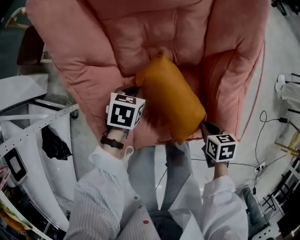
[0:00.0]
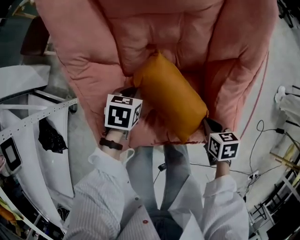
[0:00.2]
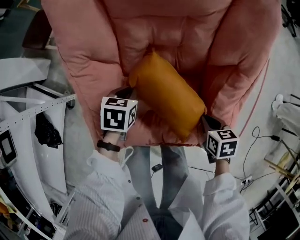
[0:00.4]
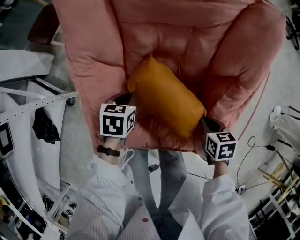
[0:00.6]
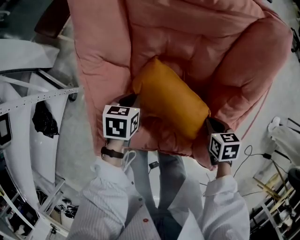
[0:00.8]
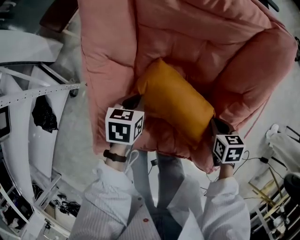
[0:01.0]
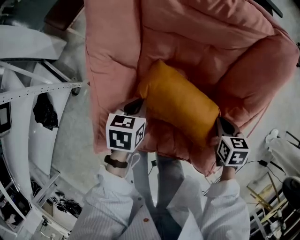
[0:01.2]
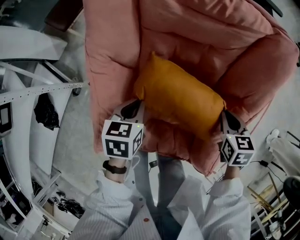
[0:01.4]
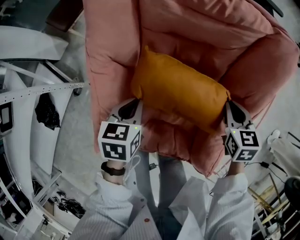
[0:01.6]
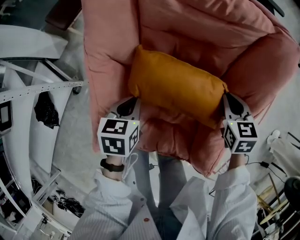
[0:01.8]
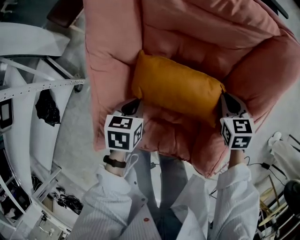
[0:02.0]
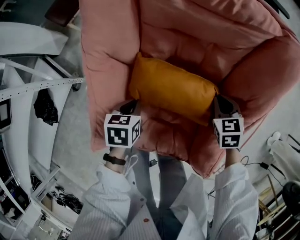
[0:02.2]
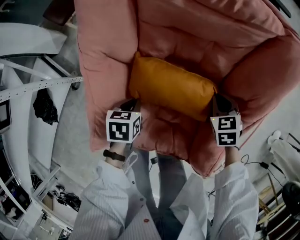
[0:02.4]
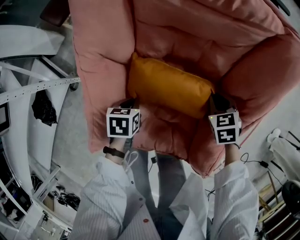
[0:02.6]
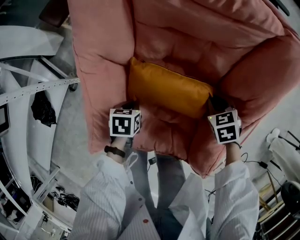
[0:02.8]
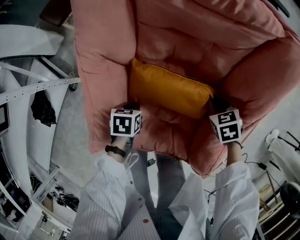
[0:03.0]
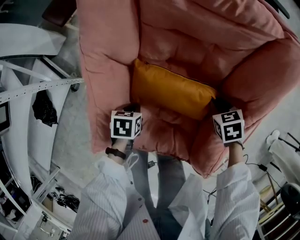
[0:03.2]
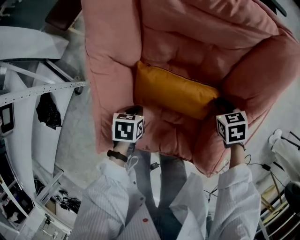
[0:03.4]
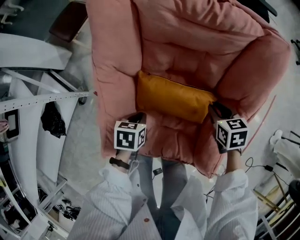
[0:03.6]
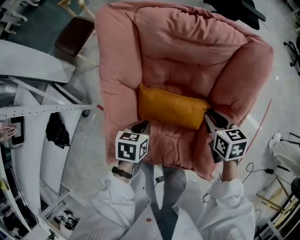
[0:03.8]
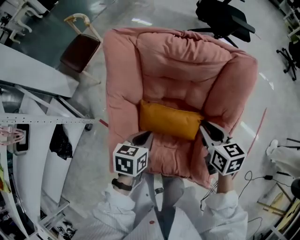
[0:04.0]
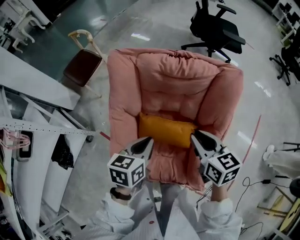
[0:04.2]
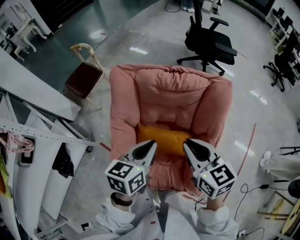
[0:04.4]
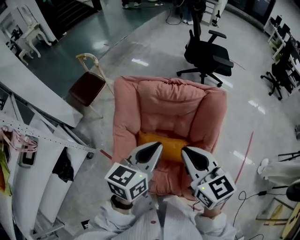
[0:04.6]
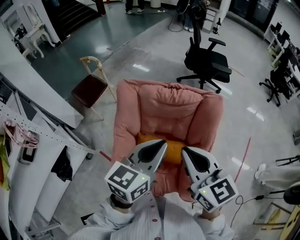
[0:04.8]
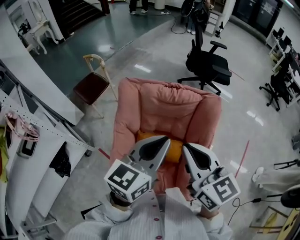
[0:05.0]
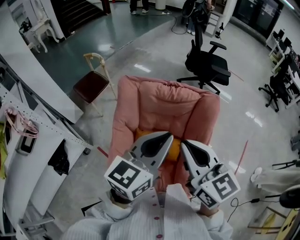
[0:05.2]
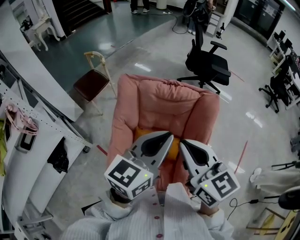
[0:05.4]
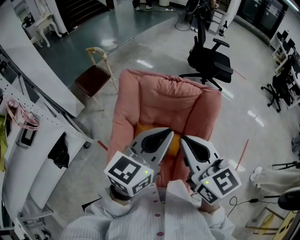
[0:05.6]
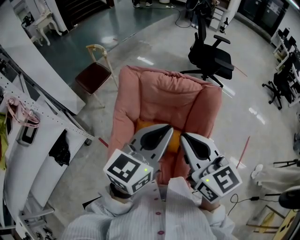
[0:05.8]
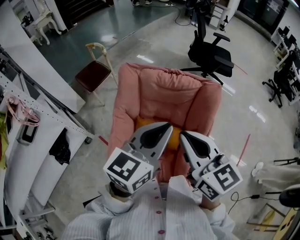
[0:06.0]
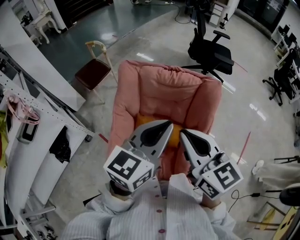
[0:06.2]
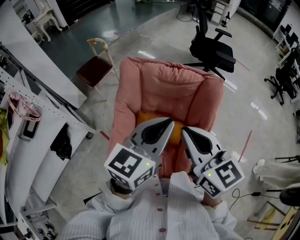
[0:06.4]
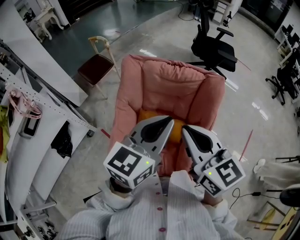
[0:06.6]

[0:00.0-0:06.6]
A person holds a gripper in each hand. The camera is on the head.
0:00.0 to 0:01.6: The left gripper moves upward, some 10 cm, and changes its angle by some 30 degrees. The right gripper shifts some 30 cm forward and upward, and rotates roughly 40 degrees.
0:01.6 to 0:03.2: Both grippers move downward, some 15 cm. The right gripper swivels about 20 degrees. Meanwhile the left gripper swivels roughly 20 degrees.
0:03.2 to 0:05.0: The two grippers go about 60 cm upward. The right gripper points its fingers some 60 degrees further upward, while the left gripper tips its fingers upward by approximately 60 degrees.
0:05.0 to 0:06.6: The grippers make only small movements.

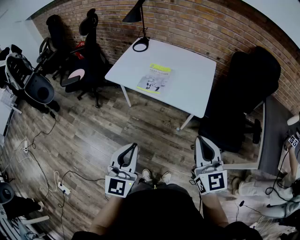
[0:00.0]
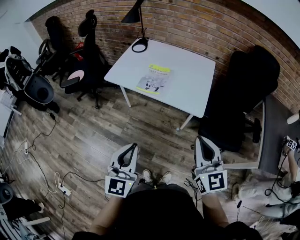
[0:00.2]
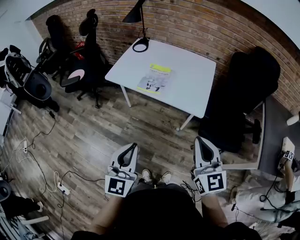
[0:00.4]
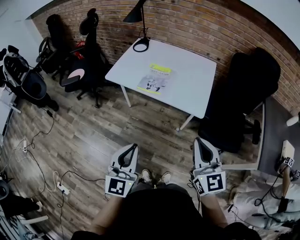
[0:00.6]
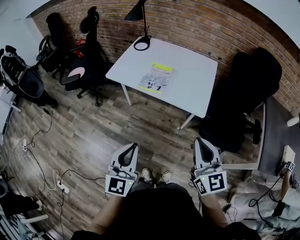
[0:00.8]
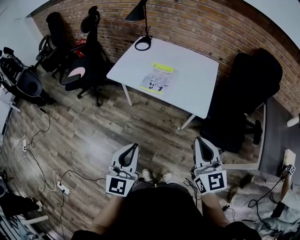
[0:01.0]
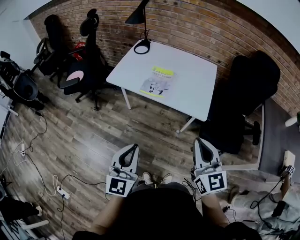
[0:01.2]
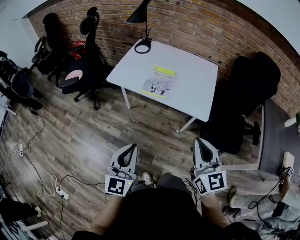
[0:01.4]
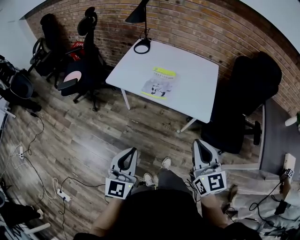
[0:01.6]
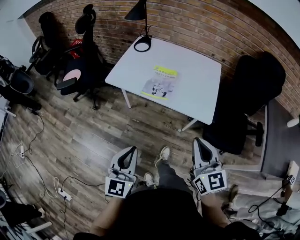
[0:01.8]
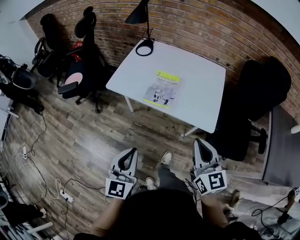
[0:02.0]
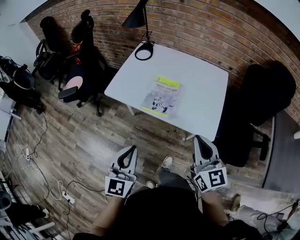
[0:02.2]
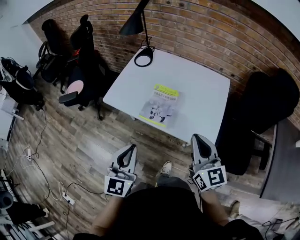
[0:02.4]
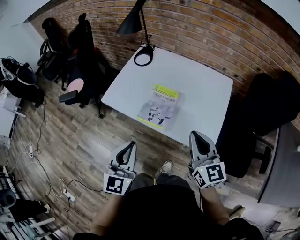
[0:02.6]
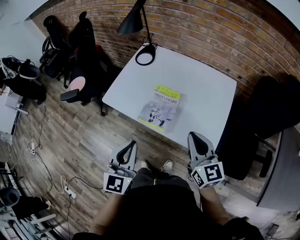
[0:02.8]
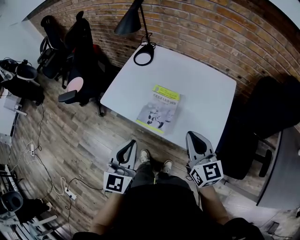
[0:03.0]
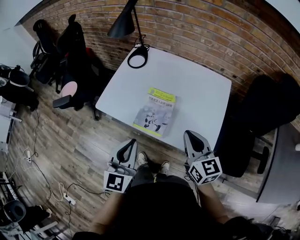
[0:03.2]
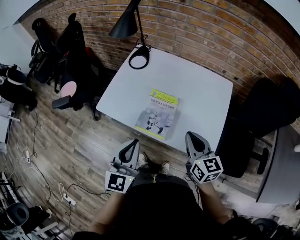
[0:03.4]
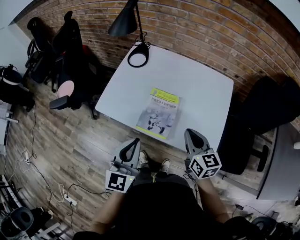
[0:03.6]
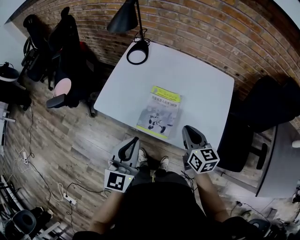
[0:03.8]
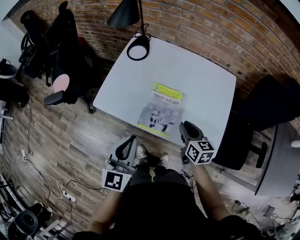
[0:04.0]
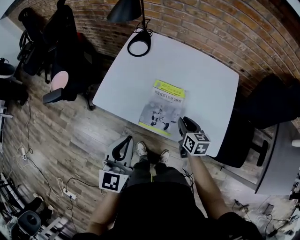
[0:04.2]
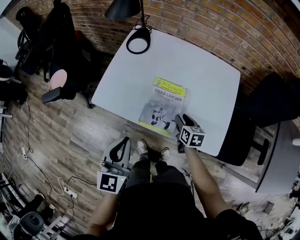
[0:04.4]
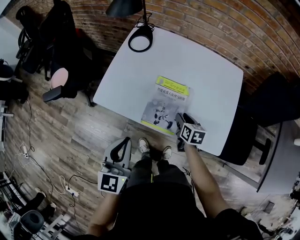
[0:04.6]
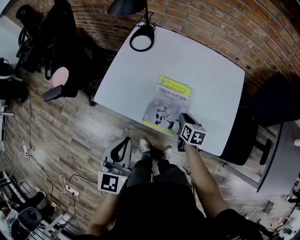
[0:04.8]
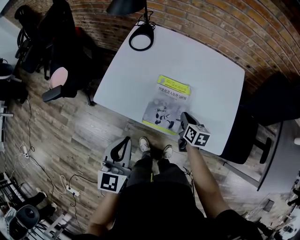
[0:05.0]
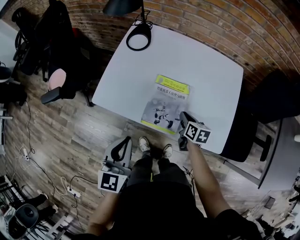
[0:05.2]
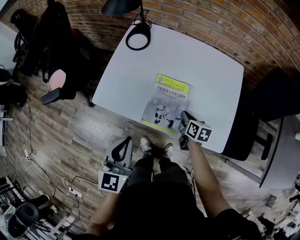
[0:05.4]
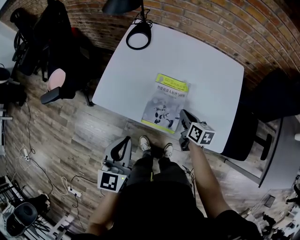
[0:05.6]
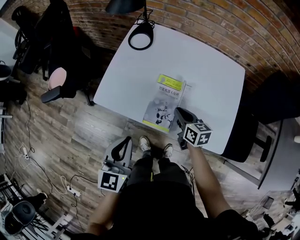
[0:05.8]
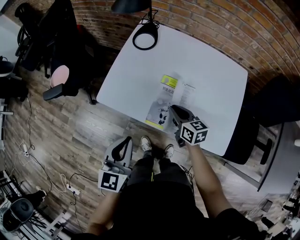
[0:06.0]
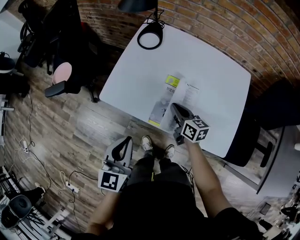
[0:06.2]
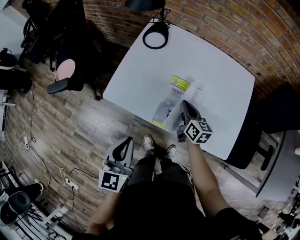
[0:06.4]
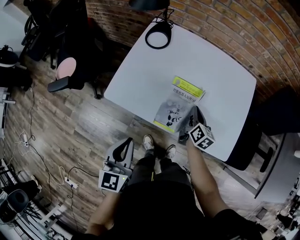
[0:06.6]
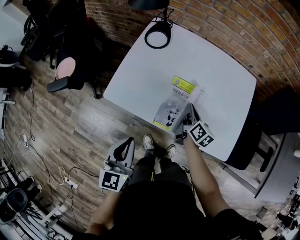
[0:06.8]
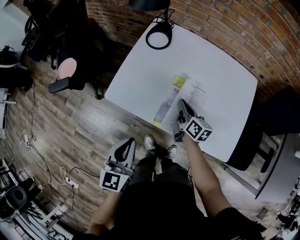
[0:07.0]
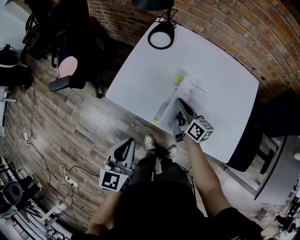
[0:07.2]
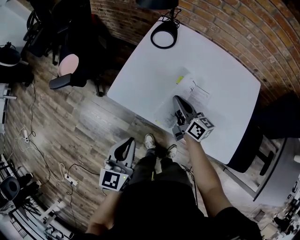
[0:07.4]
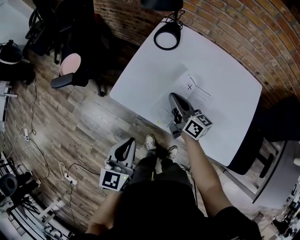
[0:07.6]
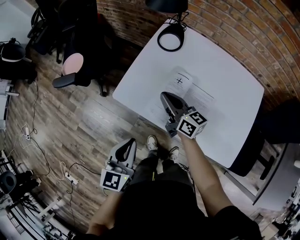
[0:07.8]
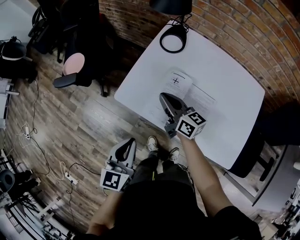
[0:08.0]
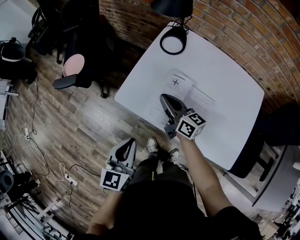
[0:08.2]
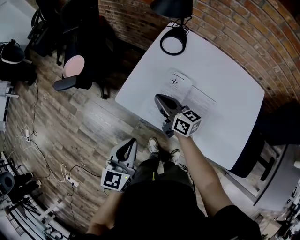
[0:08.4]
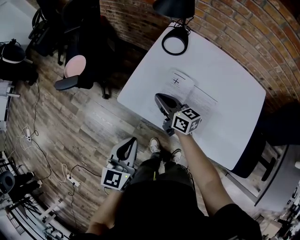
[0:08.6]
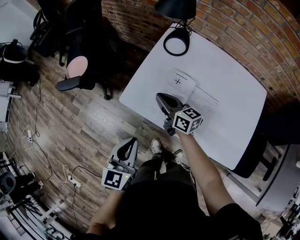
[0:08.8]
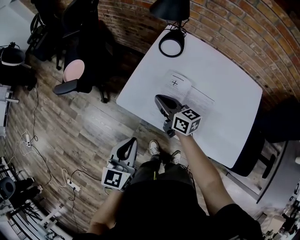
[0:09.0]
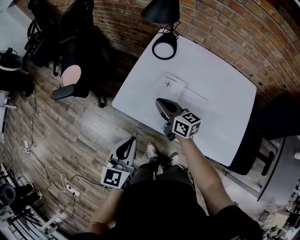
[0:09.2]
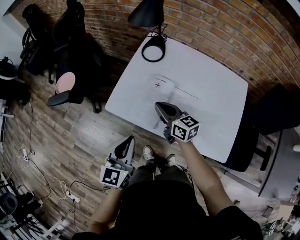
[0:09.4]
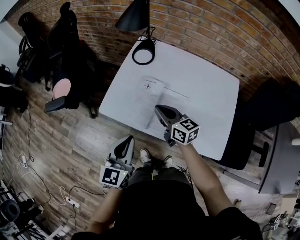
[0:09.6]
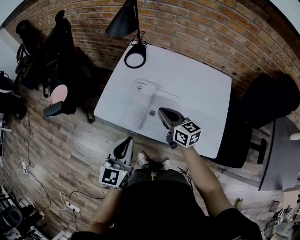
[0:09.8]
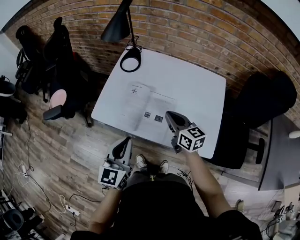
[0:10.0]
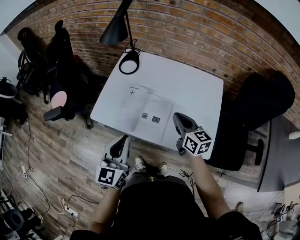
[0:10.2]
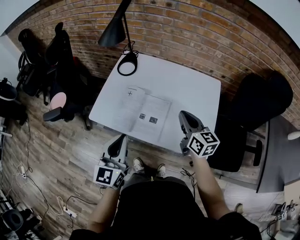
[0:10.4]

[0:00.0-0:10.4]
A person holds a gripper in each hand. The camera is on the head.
0:00.0 to 0:01.4: Both grippers travel together to the left, about 5 cm.
0:01.4 to 0:03.0: Both grippers travel together forward, approximately 30 cm.
0:03.0 to 0:04.4: The left gripper moves to the left and forward, about 10 cm, while the right gripper moves downward and forward, approximately 30 cm, tilts its fingers approximately 30 degrees downward, and opens.
0:04.4 to 0:06.0: The right gripper travels to the left by some 10 cm, turns by some 20 degrees, and closes up.
0:06.0 to 0:07.4: The right gripper moves to the left and forward, some 10 cm, and turns by approximately 20 degrees.
0:07.4 to 0:09.0: The right gripper travels to the left by roughly 10 cm.
0:09.0 to 0:10.4: The left gripper travels to the right and upward by some 15 cm, while the right gripper travels to the right, backward and upward by about 35 cm, and swivels approximately 30 degrees.

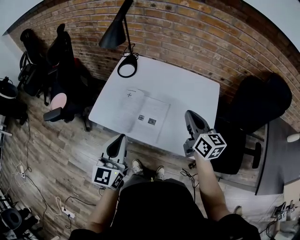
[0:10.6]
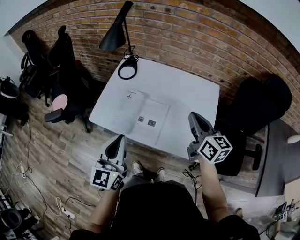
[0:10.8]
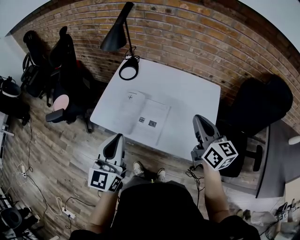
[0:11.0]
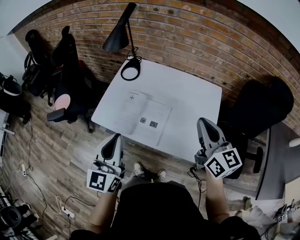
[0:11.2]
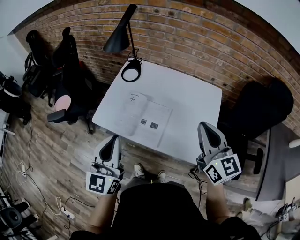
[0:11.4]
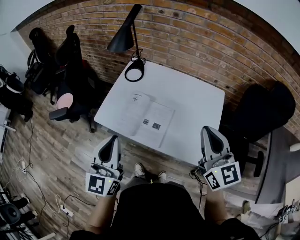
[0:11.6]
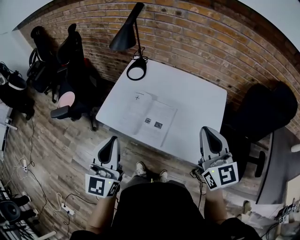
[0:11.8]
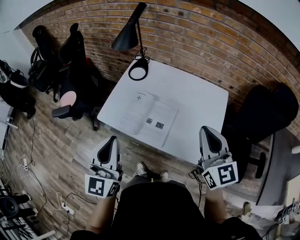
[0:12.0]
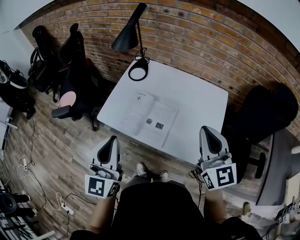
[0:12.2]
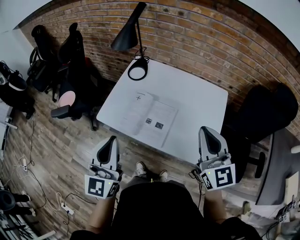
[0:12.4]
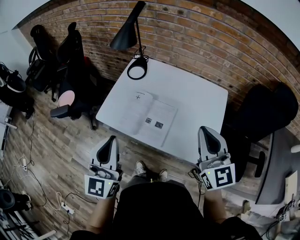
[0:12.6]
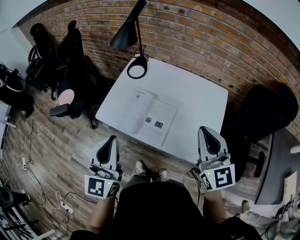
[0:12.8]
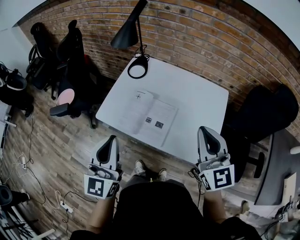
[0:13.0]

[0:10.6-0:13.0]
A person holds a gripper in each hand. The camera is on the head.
0:10.6 to 0:11.8: The right gripper is displaced upward and backward by about 15 cm, and changes its angle by roughly 30 degrees. The left gripper shifts some 10 cm upward.
0:11.8 to 0:13.0: The grippers make only small movements.

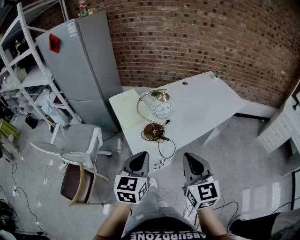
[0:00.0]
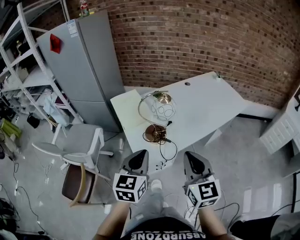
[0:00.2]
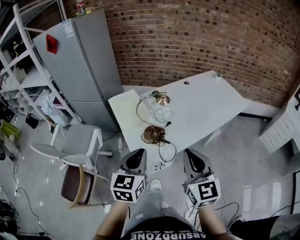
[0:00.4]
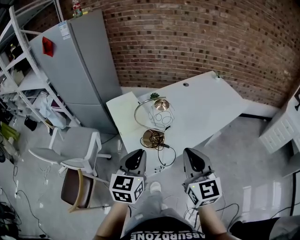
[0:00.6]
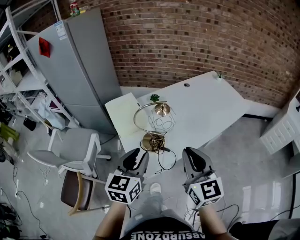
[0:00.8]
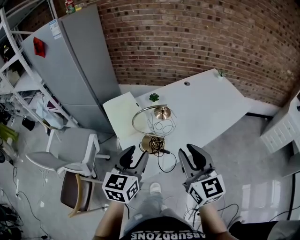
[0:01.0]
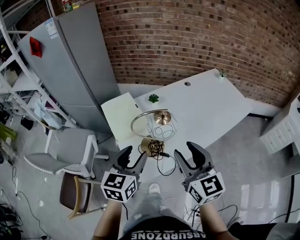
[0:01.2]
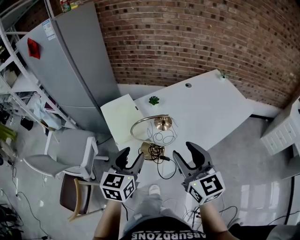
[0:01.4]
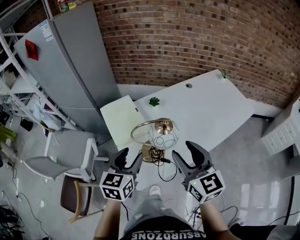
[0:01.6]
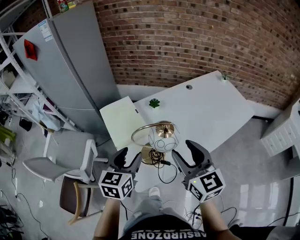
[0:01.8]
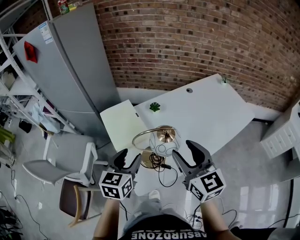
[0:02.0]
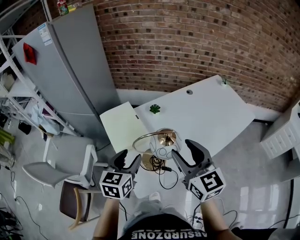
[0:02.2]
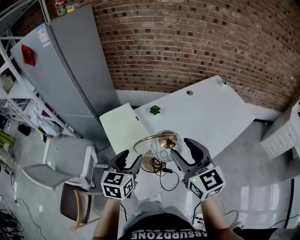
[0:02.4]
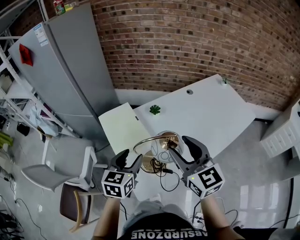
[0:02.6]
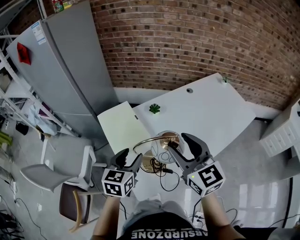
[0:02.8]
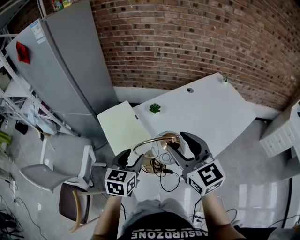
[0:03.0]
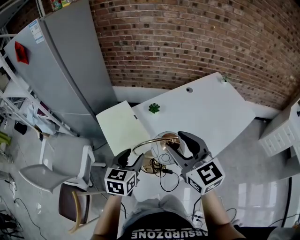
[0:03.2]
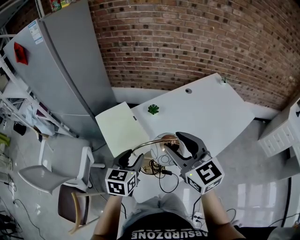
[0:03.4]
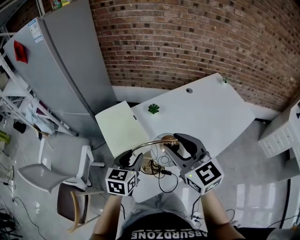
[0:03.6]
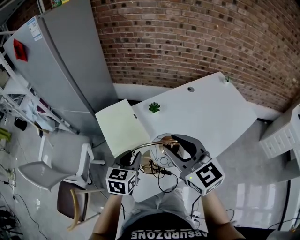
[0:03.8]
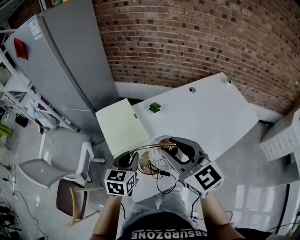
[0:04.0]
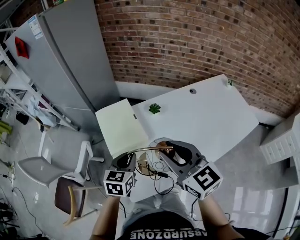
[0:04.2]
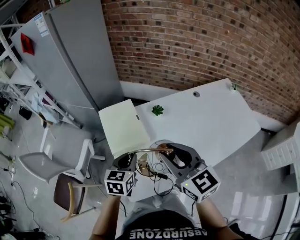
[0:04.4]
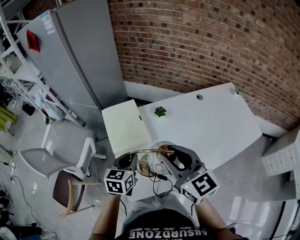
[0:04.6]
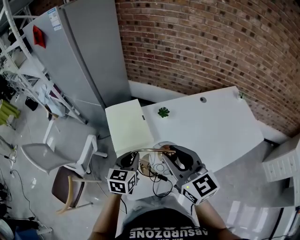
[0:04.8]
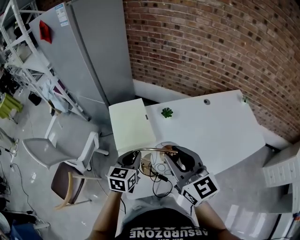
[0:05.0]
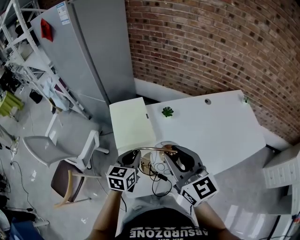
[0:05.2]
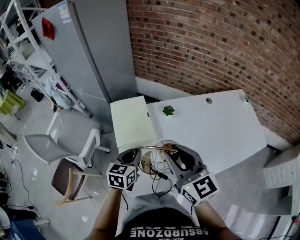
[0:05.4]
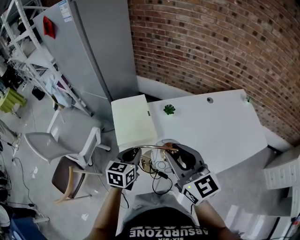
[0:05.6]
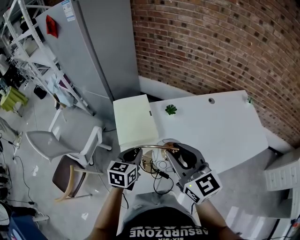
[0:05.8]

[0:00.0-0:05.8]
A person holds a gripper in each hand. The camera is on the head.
0:00.0 to 0:01.4: The grippers both shift forward by approximately 20 cm. The right gripper opens up. Meanwhile the left gripper opens.
0:01.4 to 0:02.8: The grippers both shift forward by roughly 10 cm.
0:02.8 to 0:04.4: The right gripper closes its fingers, while the left gripper closes its fingers.
0:04.4 to 0:05.8: The grippers make only small movements.
